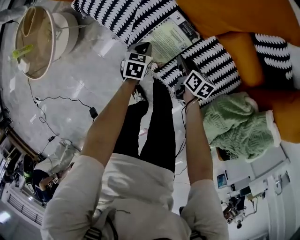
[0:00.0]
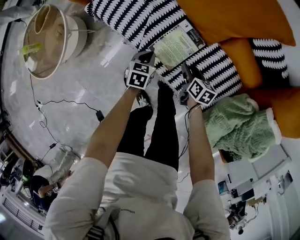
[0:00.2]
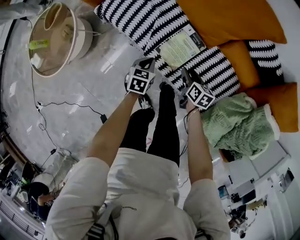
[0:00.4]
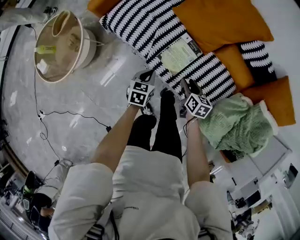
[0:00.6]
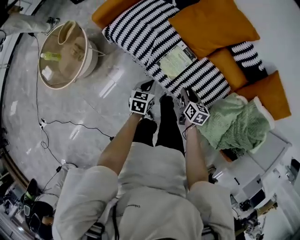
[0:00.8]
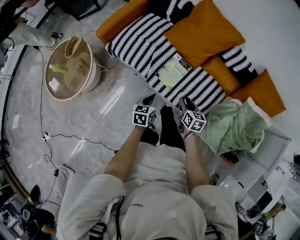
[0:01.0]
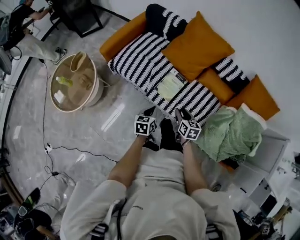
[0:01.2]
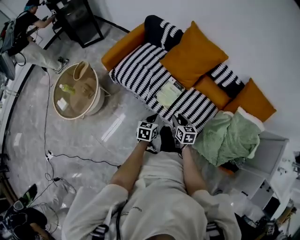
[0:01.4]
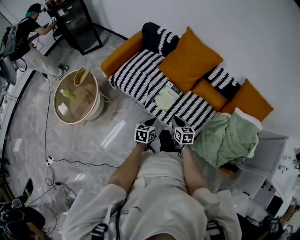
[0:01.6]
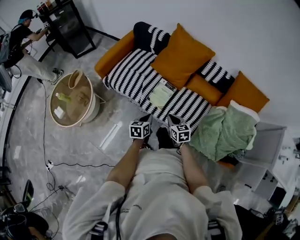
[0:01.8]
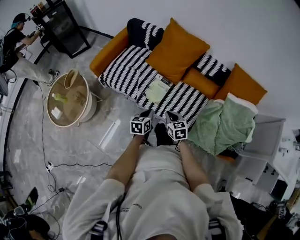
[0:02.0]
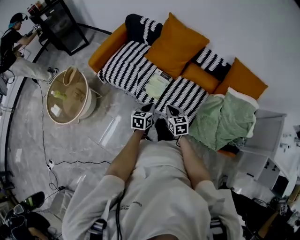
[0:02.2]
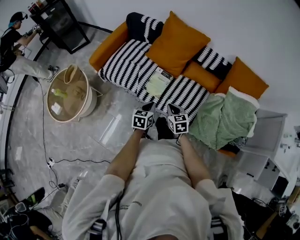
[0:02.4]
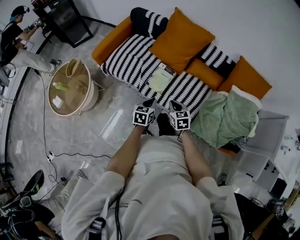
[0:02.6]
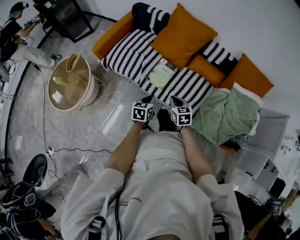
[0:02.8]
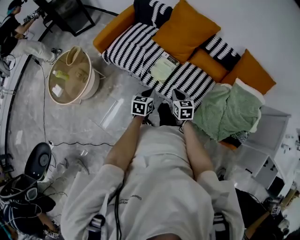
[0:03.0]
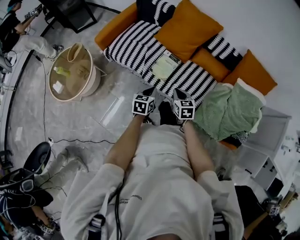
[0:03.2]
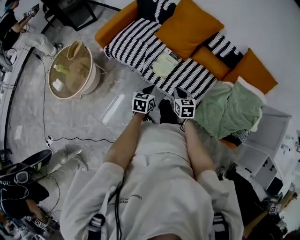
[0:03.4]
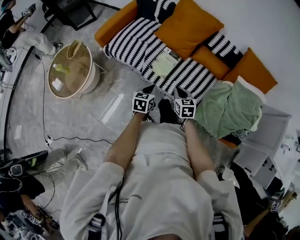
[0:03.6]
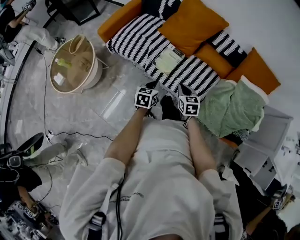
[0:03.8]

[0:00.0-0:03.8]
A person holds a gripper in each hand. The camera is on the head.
0:00.0 to 0:01.2: The two grippers go some 35 cm upward and backward. The right gripper rotates about 30 degrees.
0:01.2 to 0:02.6: The right gripper changes place by some 5 cm, and closes, while the left gripper travels upward and to the right by approximately 10 cm.
0:02.6 to 0:03.8: The grippers move only a little.

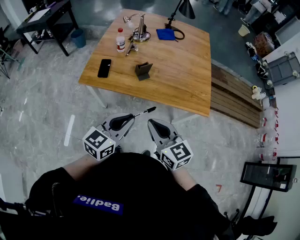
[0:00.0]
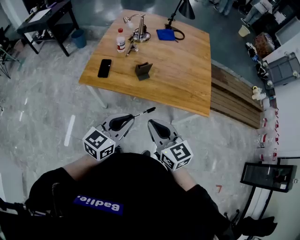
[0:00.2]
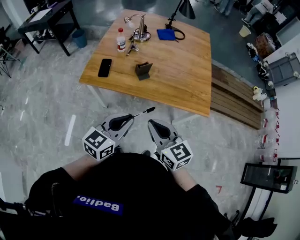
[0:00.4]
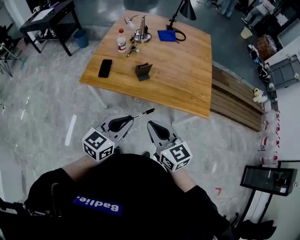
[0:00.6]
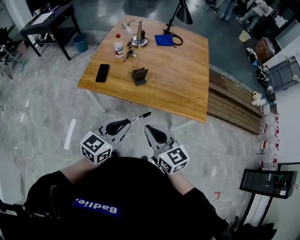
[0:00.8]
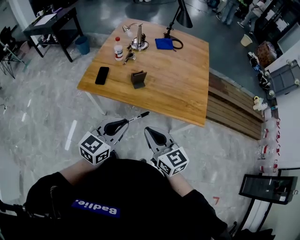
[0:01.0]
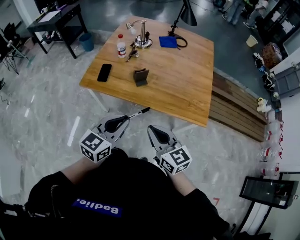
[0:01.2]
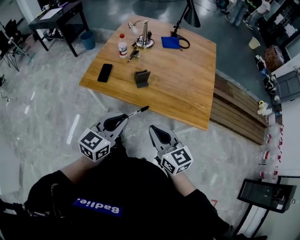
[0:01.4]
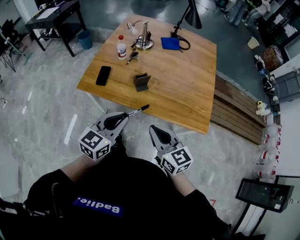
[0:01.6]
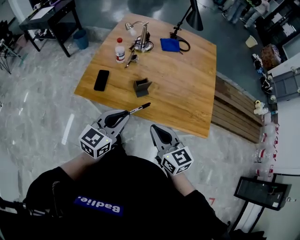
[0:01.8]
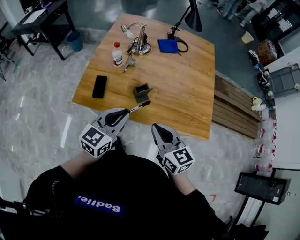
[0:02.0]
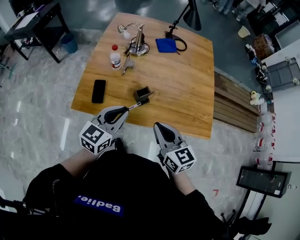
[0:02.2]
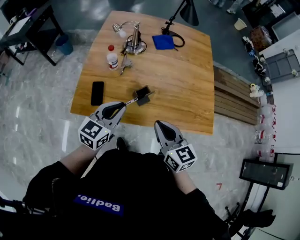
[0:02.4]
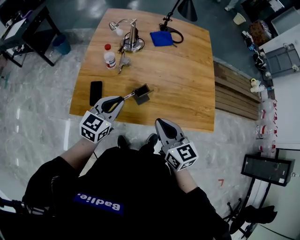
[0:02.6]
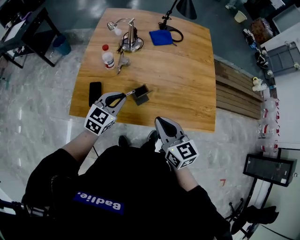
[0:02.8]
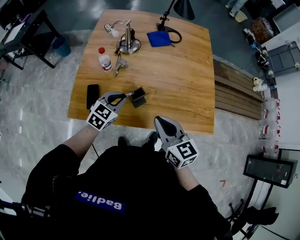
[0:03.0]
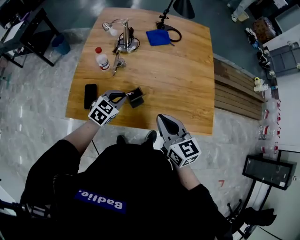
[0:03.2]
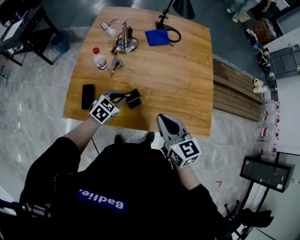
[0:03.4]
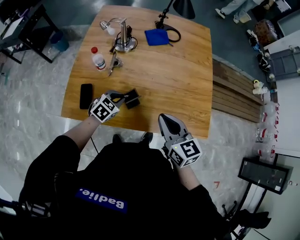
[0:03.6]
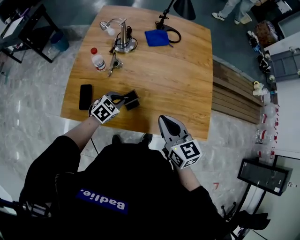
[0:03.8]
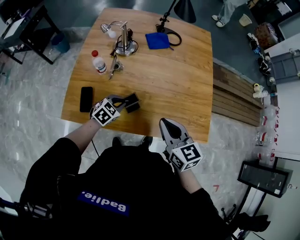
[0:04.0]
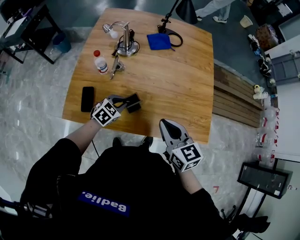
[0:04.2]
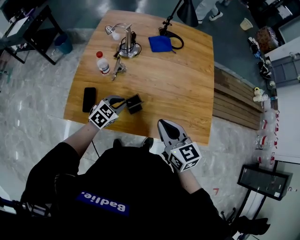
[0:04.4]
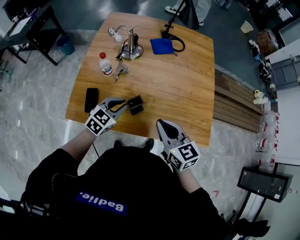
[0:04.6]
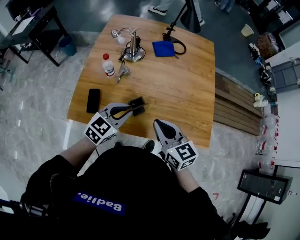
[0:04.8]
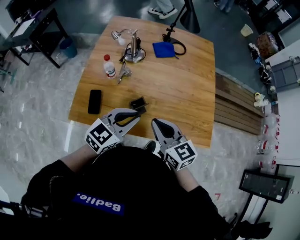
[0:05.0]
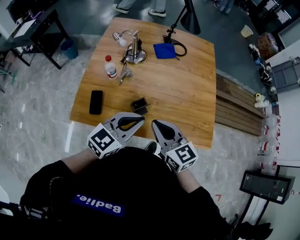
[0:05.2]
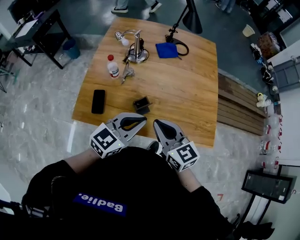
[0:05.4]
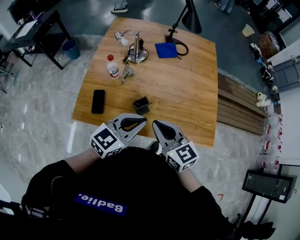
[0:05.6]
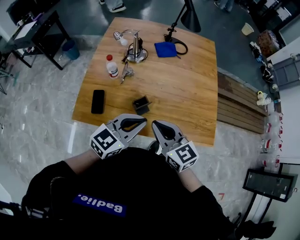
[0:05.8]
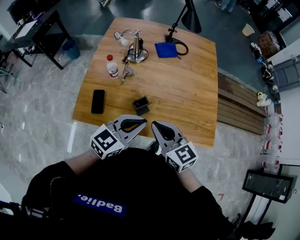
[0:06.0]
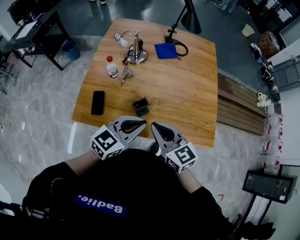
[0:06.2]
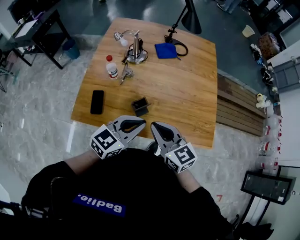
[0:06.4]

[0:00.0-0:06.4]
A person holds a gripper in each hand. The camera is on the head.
0:00.0 to 0:01.6: The left gripper travels forward by some 10 cm. Meanwhile the right gripper heads forward and to the right, covering about 10 cm.
0:01.6 to 0:03.2: The left gripper travels forward and downward by about 30 cm, and changes its angle by roughly 30 degrees. Meanwhile the right gripper goes some 20 cm forward.
0:03.2 to 0:04.8: The left gripper moves upward, roughly 10 cm.
0:04.8 to 0:06.4: The left gripper travels upward and backward by about 10 cm.

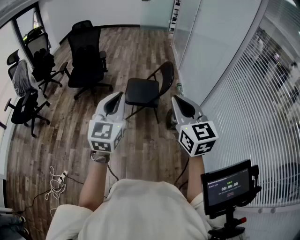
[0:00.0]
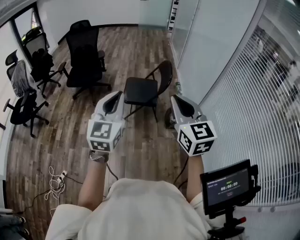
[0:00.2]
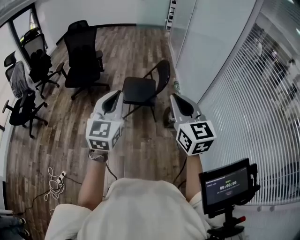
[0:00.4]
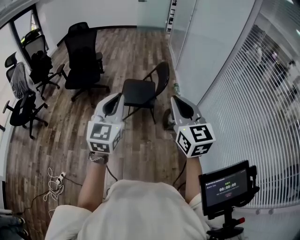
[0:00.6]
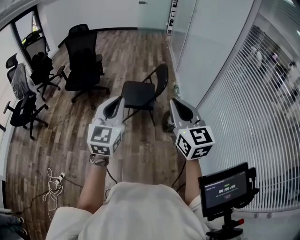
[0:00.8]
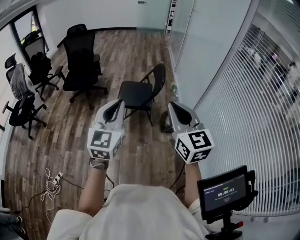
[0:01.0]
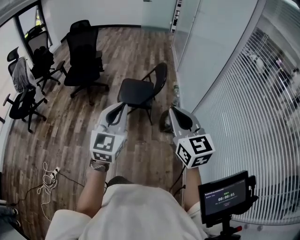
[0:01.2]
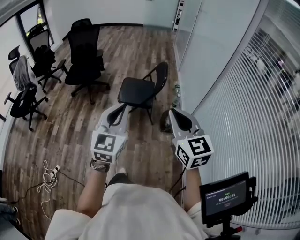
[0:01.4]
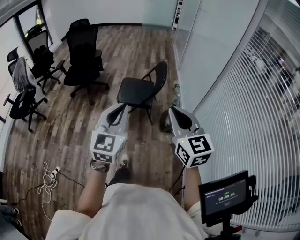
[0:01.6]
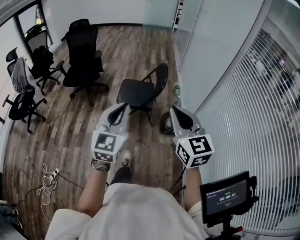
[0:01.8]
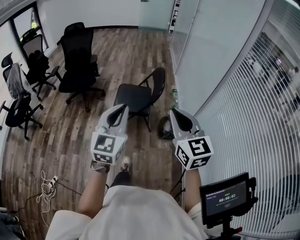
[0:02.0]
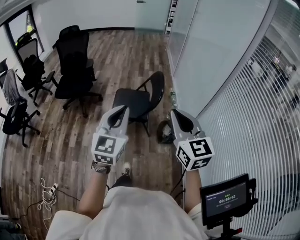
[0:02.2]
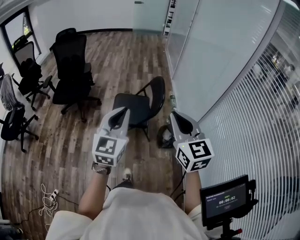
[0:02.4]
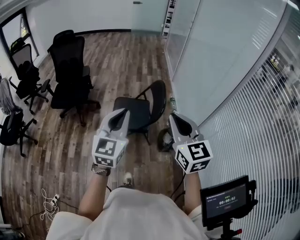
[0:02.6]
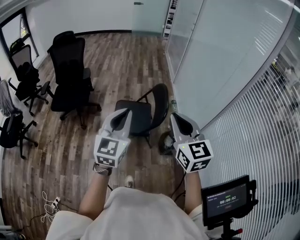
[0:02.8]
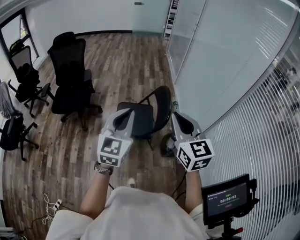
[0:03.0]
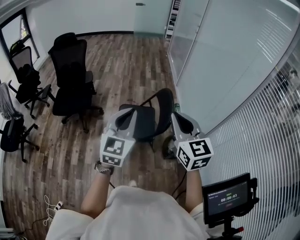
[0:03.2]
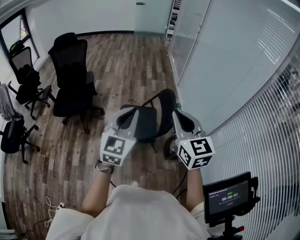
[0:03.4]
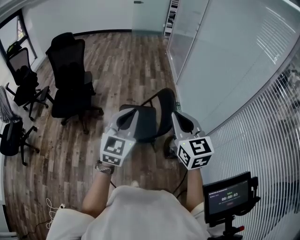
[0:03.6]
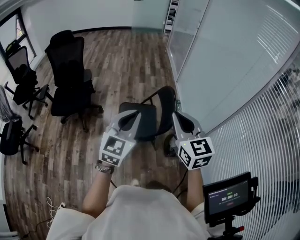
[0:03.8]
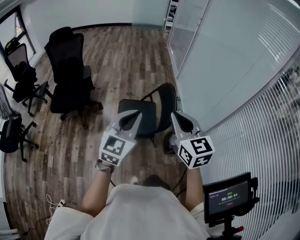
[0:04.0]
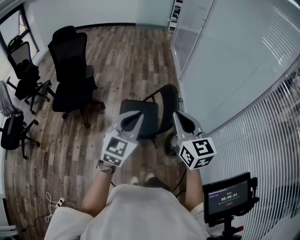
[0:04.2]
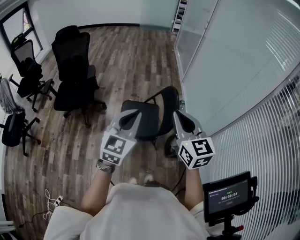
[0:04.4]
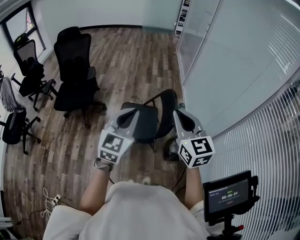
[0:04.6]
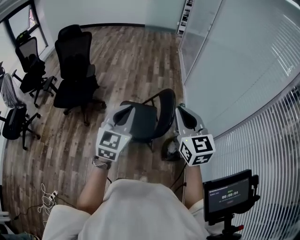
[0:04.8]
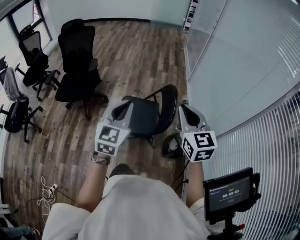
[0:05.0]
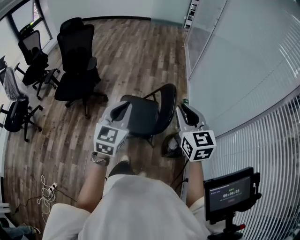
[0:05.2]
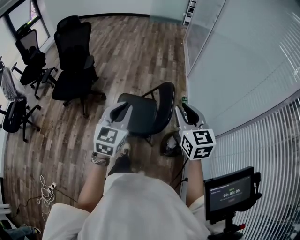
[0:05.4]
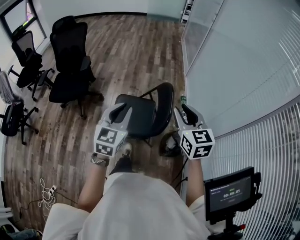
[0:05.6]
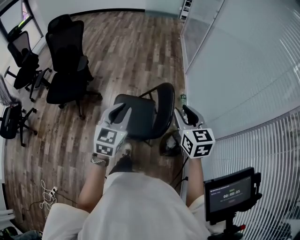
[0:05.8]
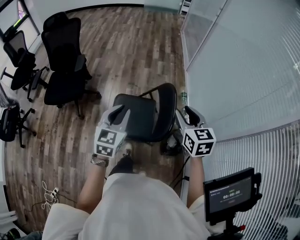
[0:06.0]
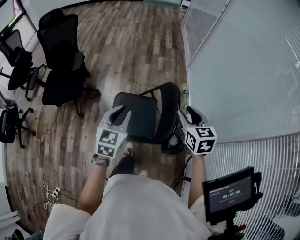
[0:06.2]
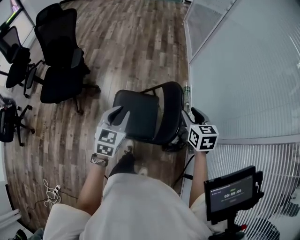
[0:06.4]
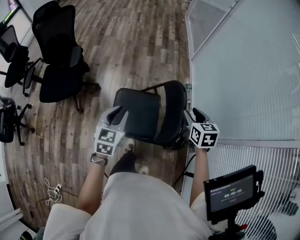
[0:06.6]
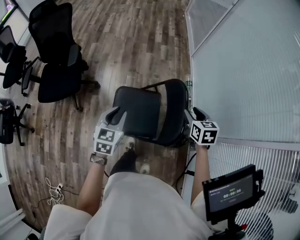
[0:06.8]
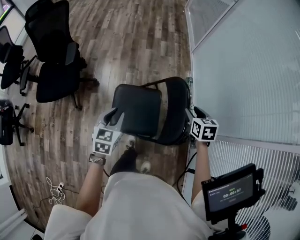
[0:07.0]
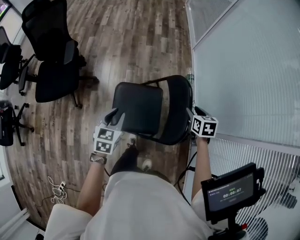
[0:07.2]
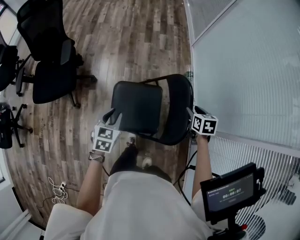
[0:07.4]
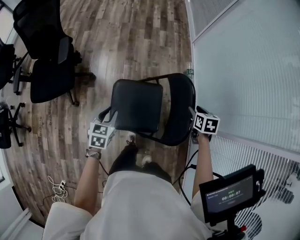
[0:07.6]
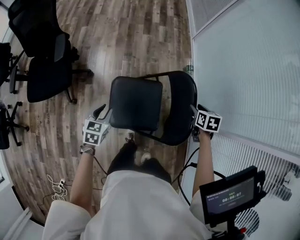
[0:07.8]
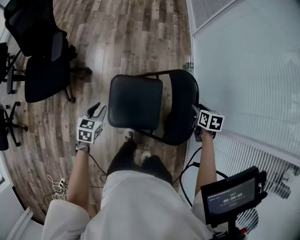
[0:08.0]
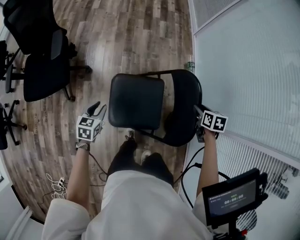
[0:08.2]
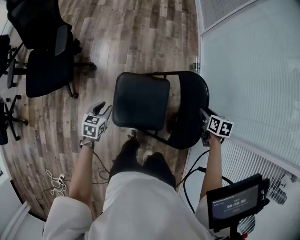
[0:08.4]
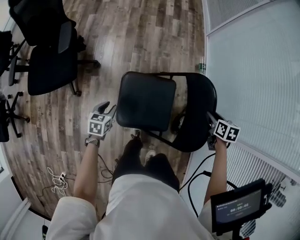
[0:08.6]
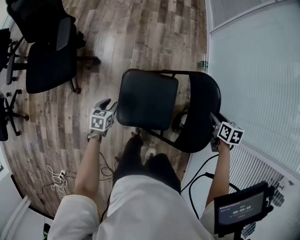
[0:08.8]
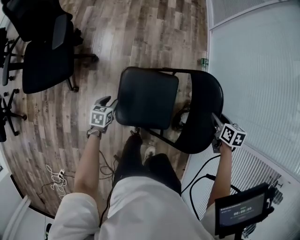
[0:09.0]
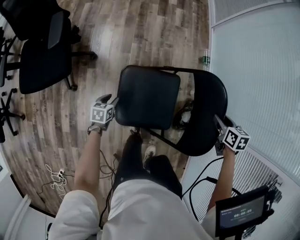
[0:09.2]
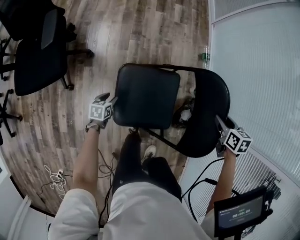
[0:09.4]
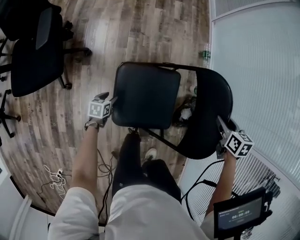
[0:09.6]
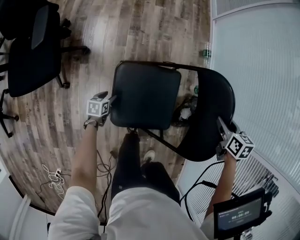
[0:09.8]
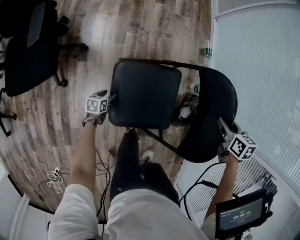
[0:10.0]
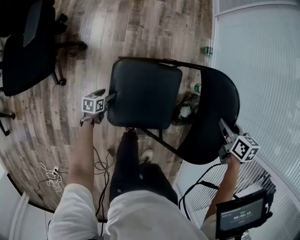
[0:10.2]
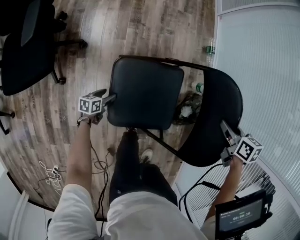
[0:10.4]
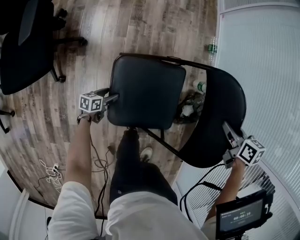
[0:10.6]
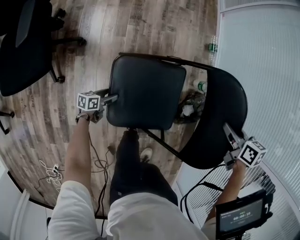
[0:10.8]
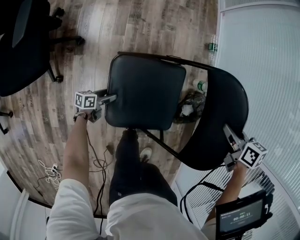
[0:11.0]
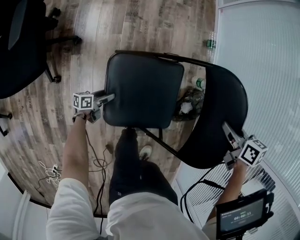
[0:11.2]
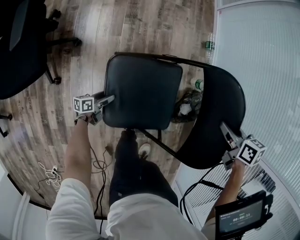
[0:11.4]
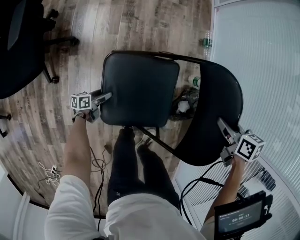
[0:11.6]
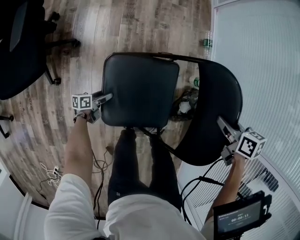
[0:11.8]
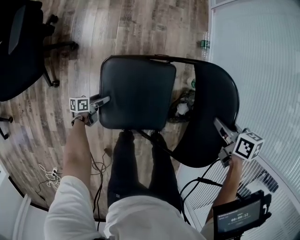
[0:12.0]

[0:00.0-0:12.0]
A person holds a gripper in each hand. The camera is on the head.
0:00.0 to 0:01.6: The grippers both shift to the right and downward by roughly 10 cm.
0:01.6 to 0:03.0: The two grippers go some 25 cm forward.
0:03.0 to 0:04.4: The right gripper moves about 5 cm.
0:04.4 to 0:06.0: The left gripper goes roughly 20 cm forward and downward, while the right gripper travels forward, downward and to the right by some 25 cm, and opens.
0:06.0 to 0:07.6: The left gripper is displaced downward and to the left by roughly 25 cm, and changes its angle by approximately 30 degrees; the right gripper travels downward and forward by some 25 cm, and tilts its fingers about 30 degrees downward.
0:07.6 to 0:09.0: The left gripper travels downward by about 20 cm.
0:09.0 to 0:10.4: The left gripper heads downward, covering approximately 15 cm, changes its angle by about 20 degrees, and opens.
0:10.4 to 0:12.0: The left gripper swivels about 20 degrees.

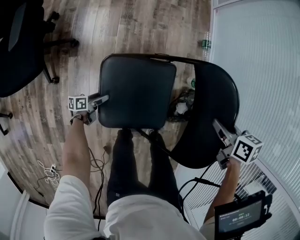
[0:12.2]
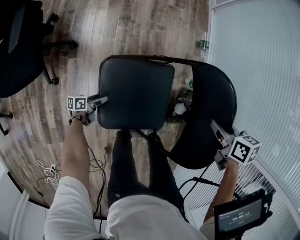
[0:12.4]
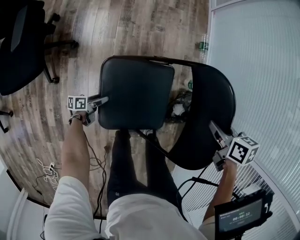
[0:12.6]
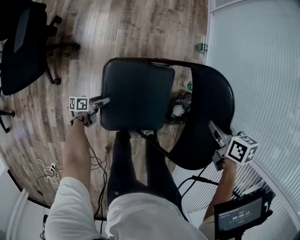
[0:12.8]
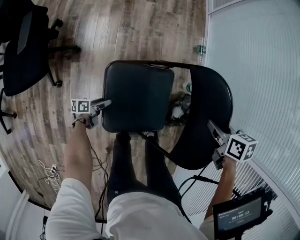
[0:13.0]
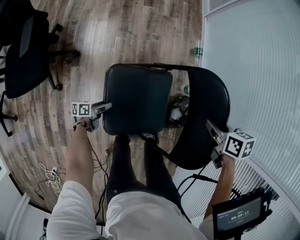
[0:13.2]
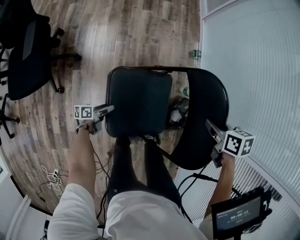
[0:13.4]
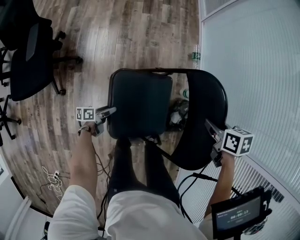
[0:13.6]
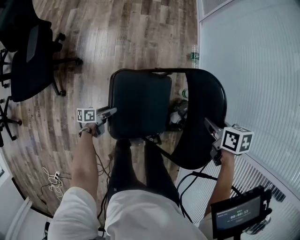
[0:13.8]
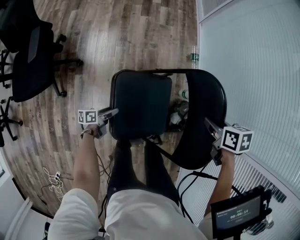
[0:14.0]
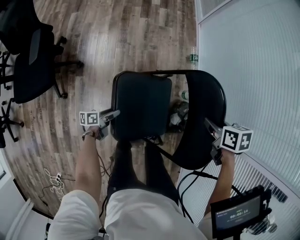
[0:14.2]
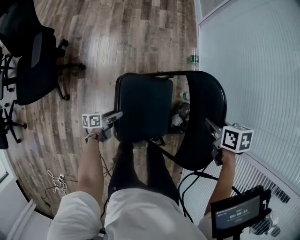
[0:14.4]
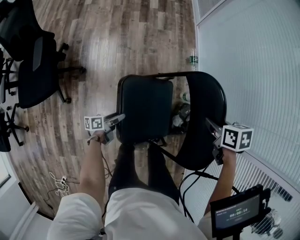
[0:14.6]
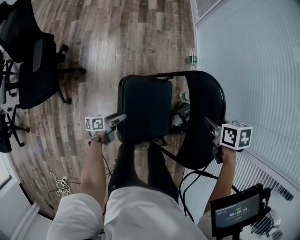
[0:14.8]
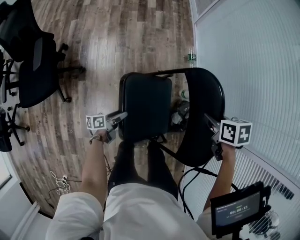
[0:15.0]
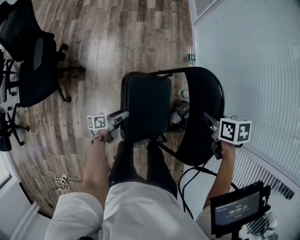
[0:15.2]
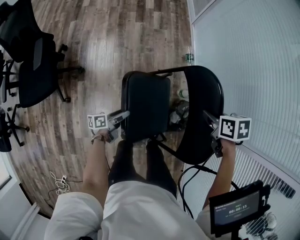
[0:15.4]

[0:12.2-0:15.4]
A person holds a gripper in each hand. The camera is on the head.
0:12.2 to 0:13.8: The right gripper moves some 5 cm. The left gripper moves upward and to the right, roughly 15 cm.
0:13.8 to 0:15.4: The left gripper goes about 10 cm upward and to the right.
